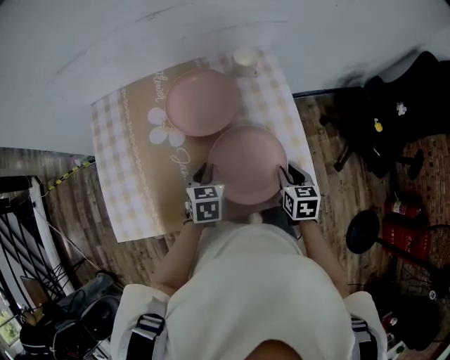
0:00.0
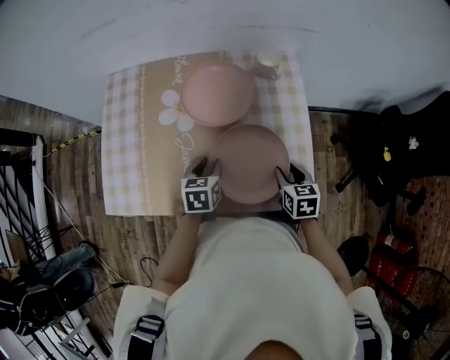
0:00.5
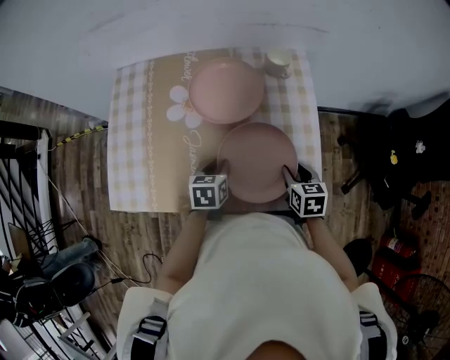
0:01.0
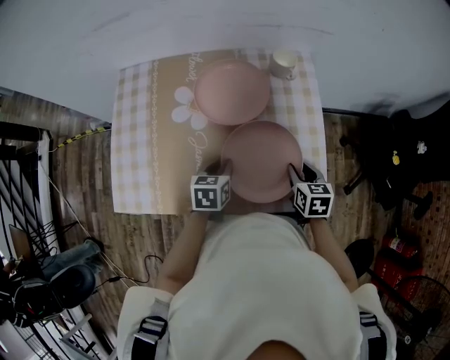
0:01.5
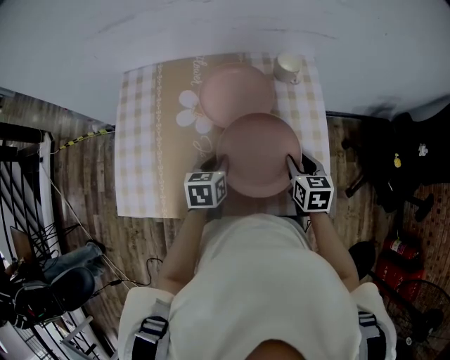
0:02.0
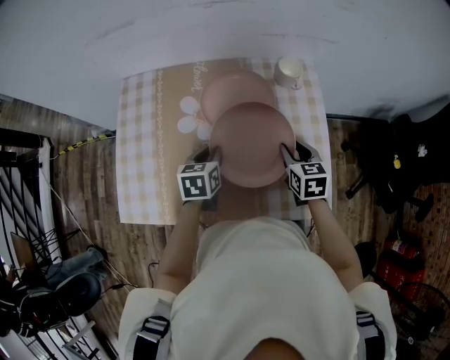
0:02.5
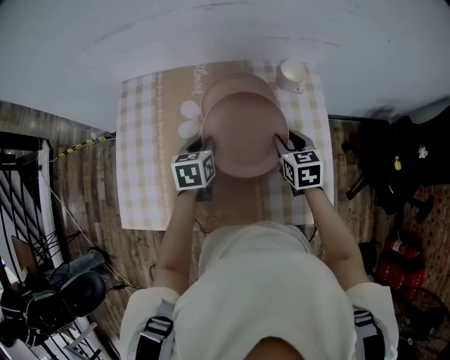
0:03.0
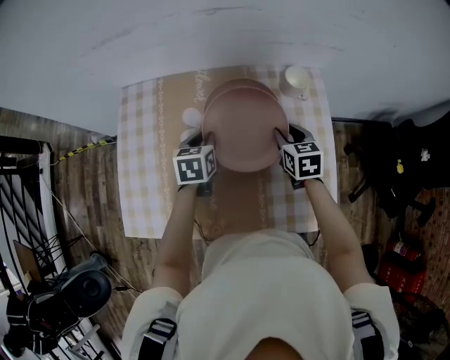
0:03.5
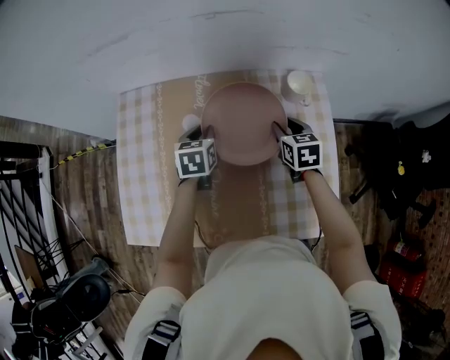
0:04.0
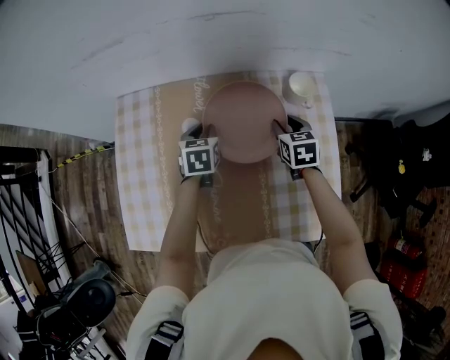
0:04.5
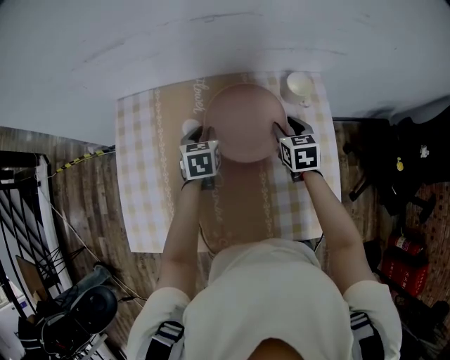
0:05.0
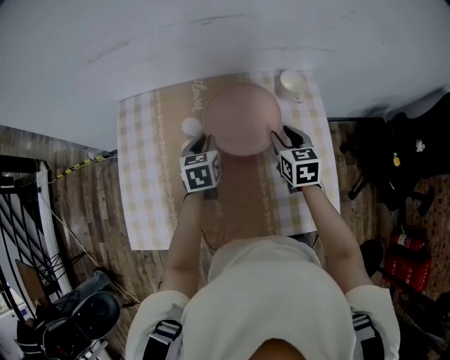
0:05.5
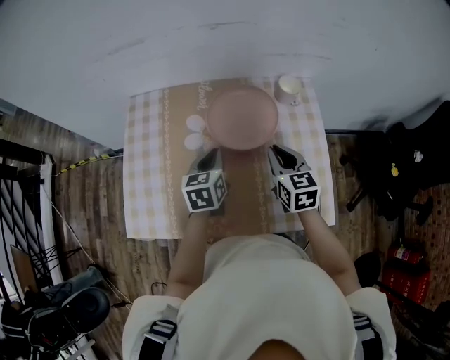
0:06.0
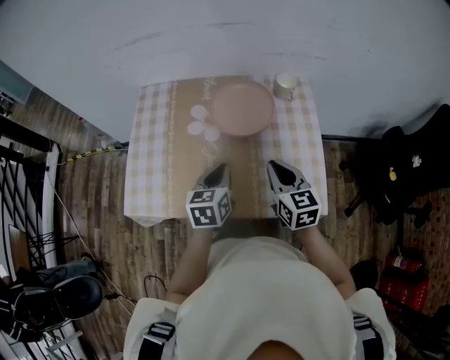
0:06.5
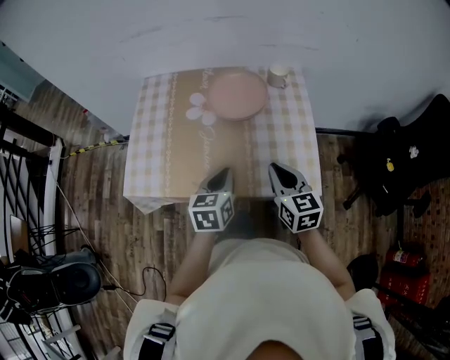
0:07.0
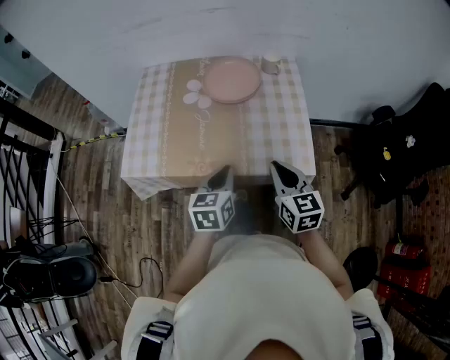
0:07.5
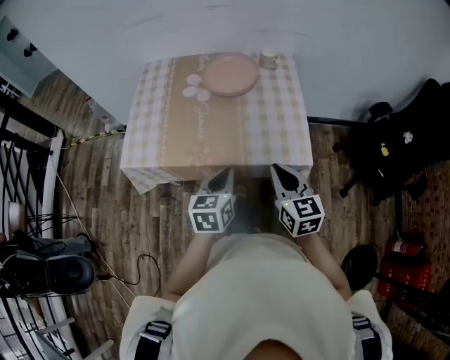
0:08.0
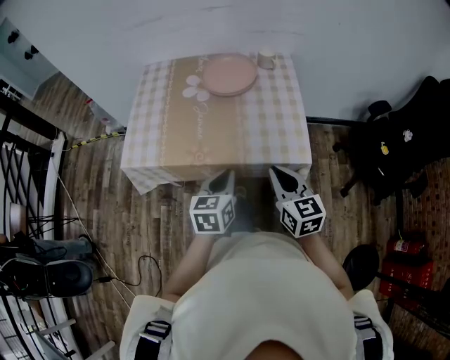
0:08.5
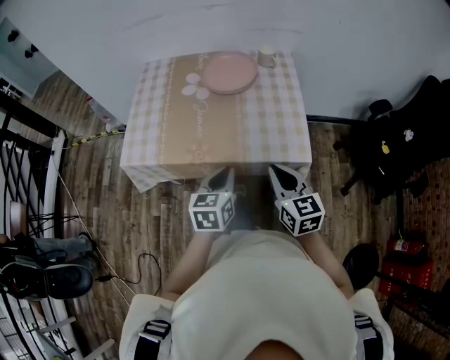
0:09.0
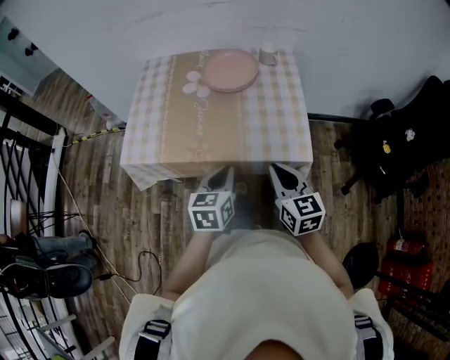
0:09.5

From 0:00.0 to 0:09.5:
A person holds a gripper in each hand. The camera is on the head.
From 0:00.0 to 0:02.0: The right gripper goes approximately 5 cm forward.
From 0:02.0 to 0:04.0: The grippers both shift forward by about 20 cm.
From 0:04.0 to 0:05.5: The right gripper changes place by about 5 cm.
From 0:05.5 to 0:07.5: The grippers both shift backward by approximately 35 cm. The right gripper changes its angle by about 20 degrees, and closes.
From 0:07.5 to 0:09.5: The two grippers go some 5 cm backward.

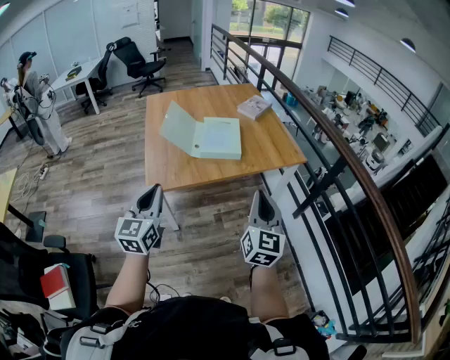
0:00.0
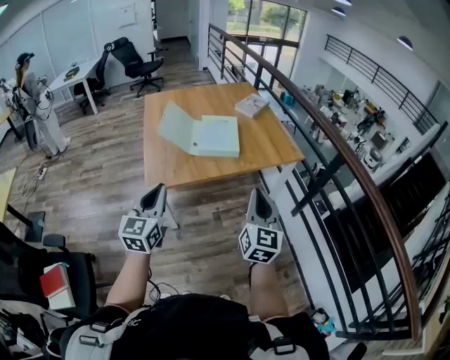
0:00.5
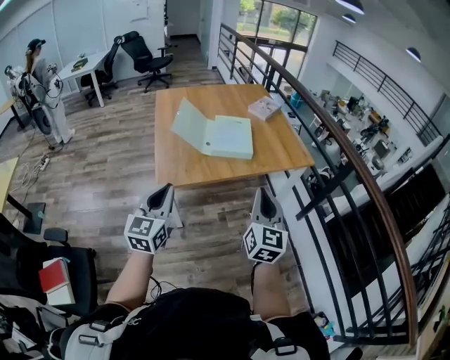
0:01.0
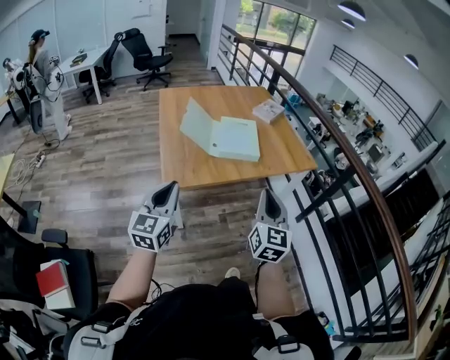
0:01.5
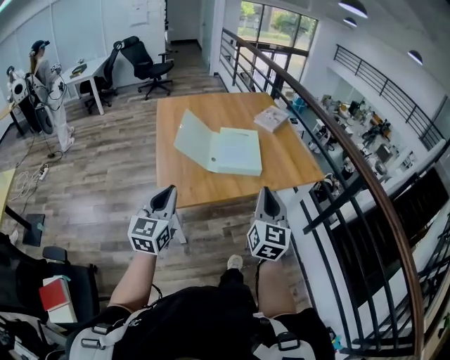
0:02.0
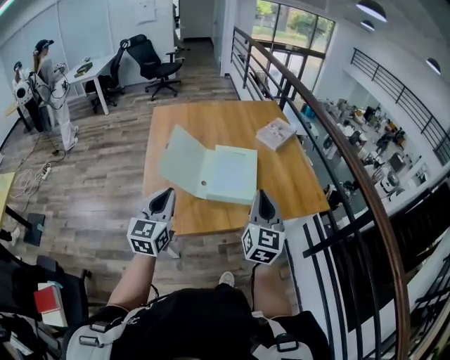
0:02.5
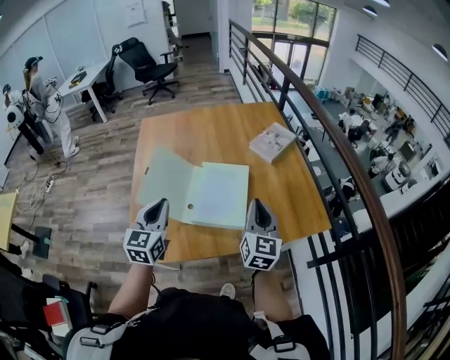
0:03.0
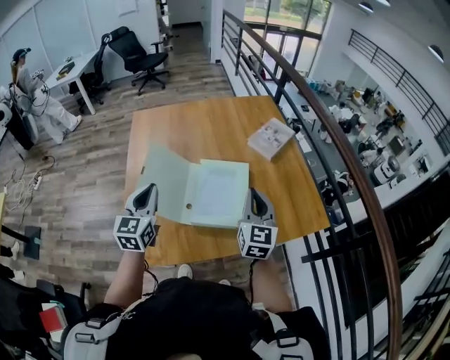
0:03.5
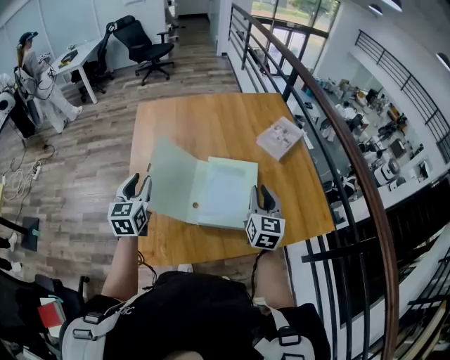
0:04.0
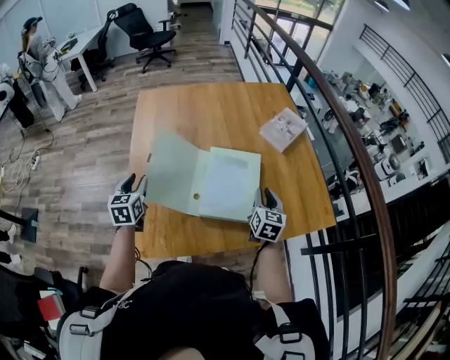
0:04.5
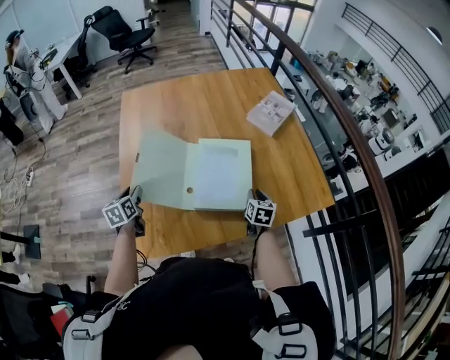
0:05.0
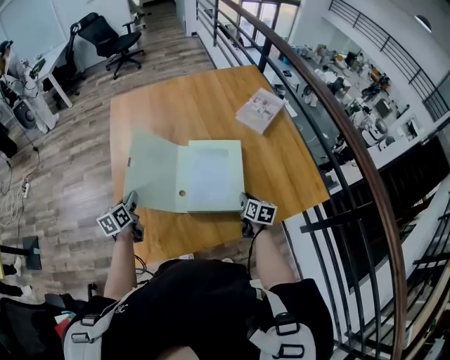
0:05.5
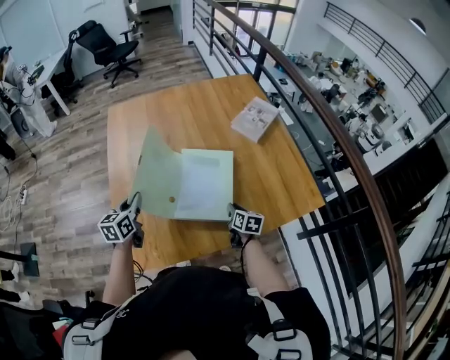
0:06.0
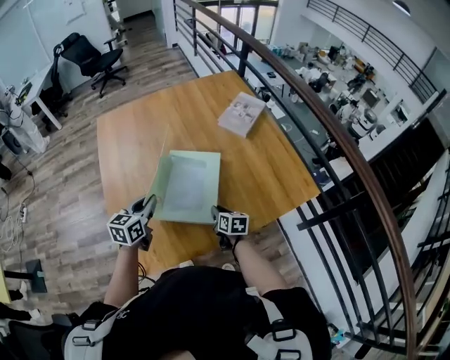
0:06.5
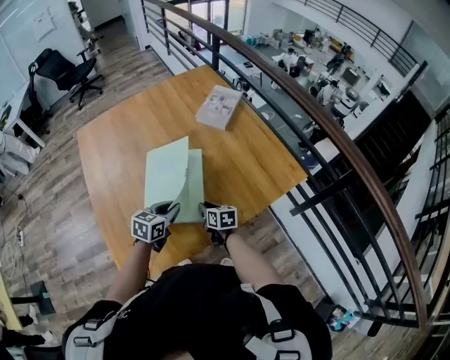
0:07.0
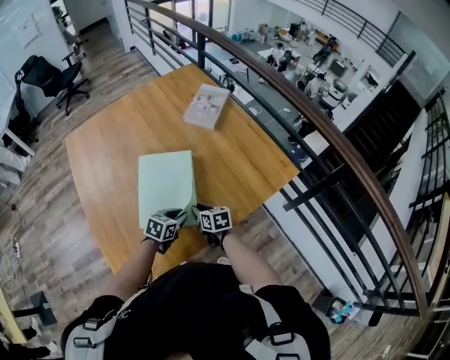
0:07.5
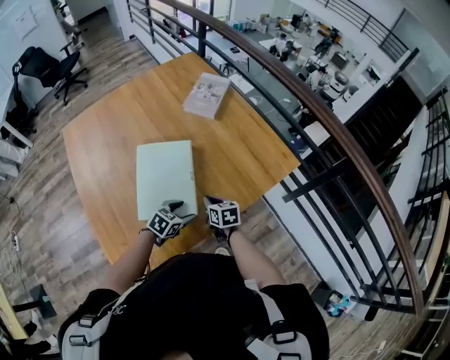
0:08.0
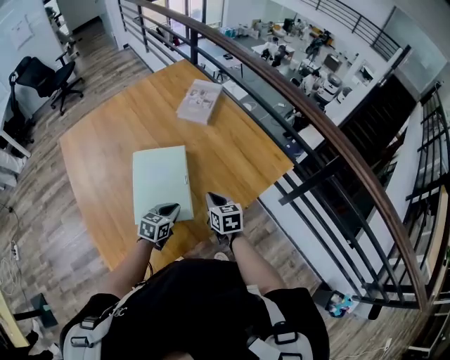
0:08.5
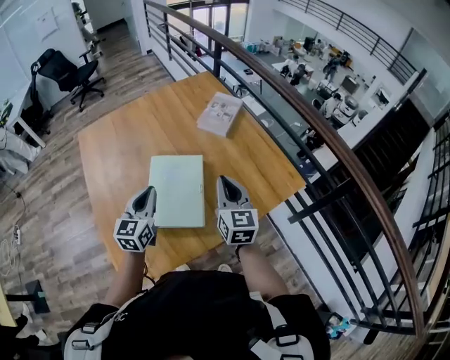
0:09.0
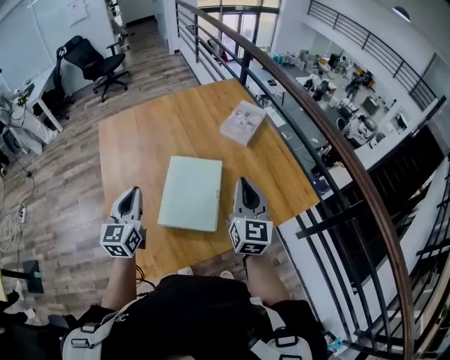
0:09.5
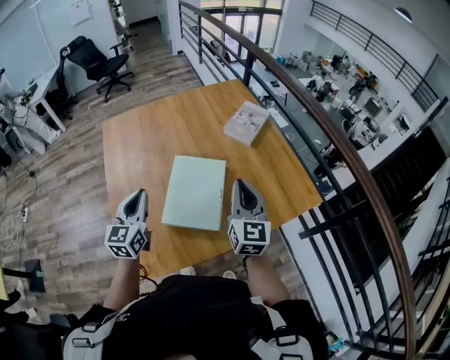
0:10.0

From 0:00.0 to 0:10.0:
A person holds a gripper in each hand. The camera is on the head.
From 0:00.0 to 0:02.0: Both grippers travel together forward and to the left, about 15 cm.
From 0:02.0 to 0:04.0: Both grippers travel together forward, roughly 40 cm. The left gripper turns by some 20 degrees, and opens.
From 0:04.0 to 0:06.0: The right gripper heads downward, covering roughly 25 cm, and rotates roughly 40 degrees, while the left gripper travels downward by about 10 cm, rotates roughly 20 degrees, and closes.
From 0:06.0 to 0:08.0: The left gripper ends up approximately 30 cm from where it was, turns by roughly 60 degrees, and opens up.
From 0:08.0 to 0:10.0: The left gripper travels upward and to the left by approximately 35 cm, tips its fingers upward by about 40 degrees, and closes up; the right gripper is displaced upward by some 30 cm, and angles its fingers upward, by approximately 40 degrees.

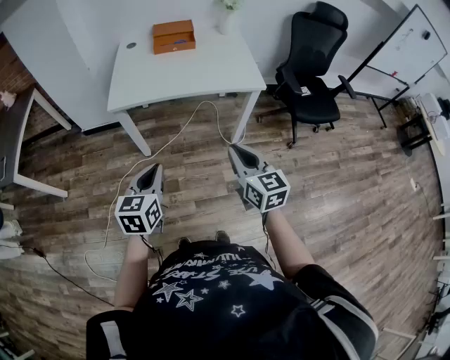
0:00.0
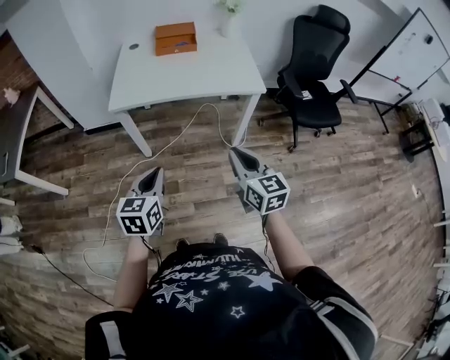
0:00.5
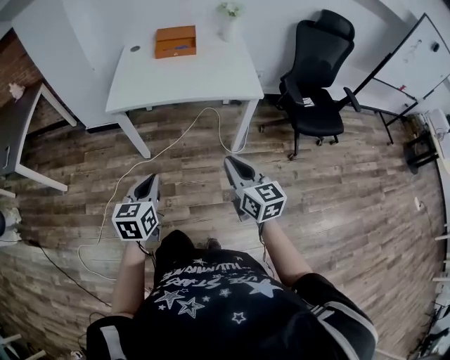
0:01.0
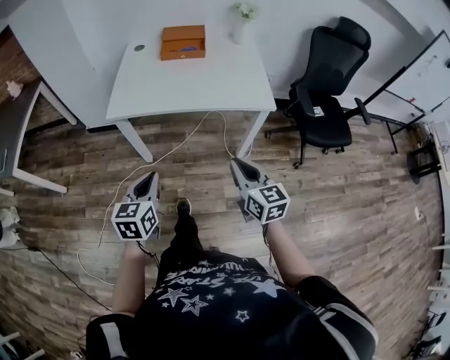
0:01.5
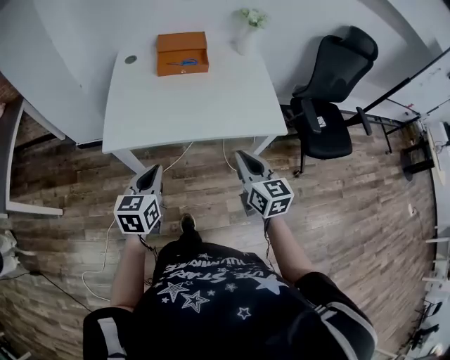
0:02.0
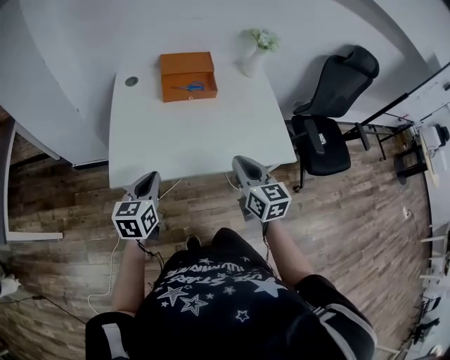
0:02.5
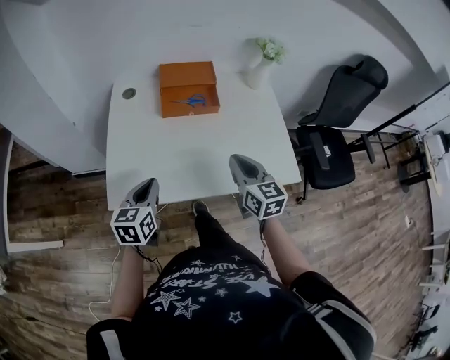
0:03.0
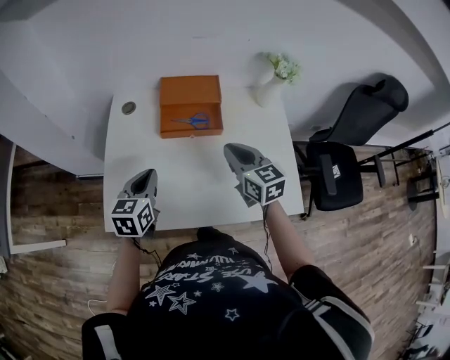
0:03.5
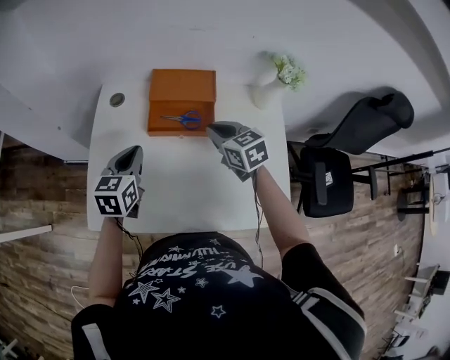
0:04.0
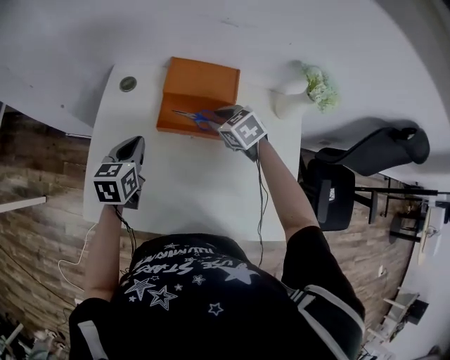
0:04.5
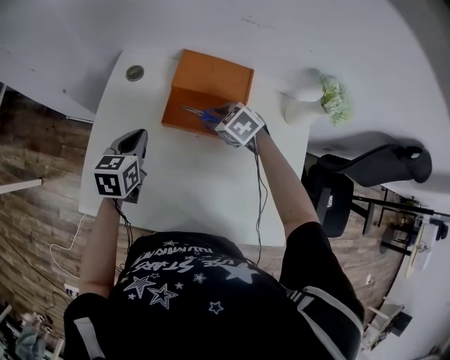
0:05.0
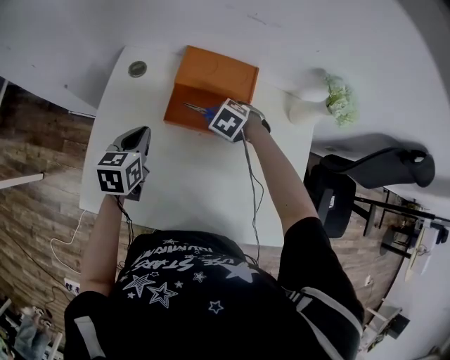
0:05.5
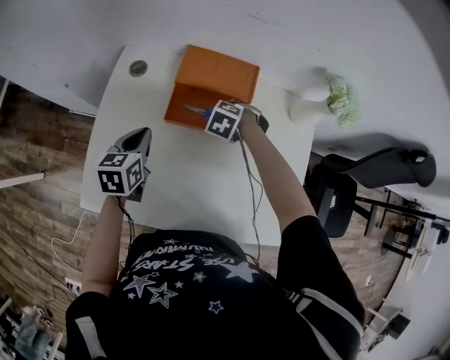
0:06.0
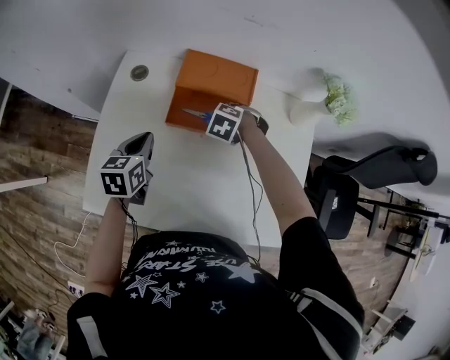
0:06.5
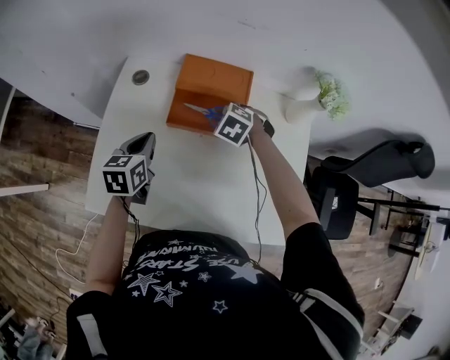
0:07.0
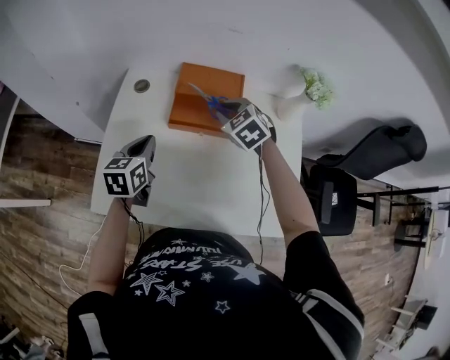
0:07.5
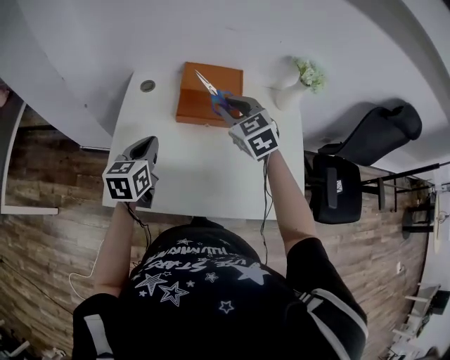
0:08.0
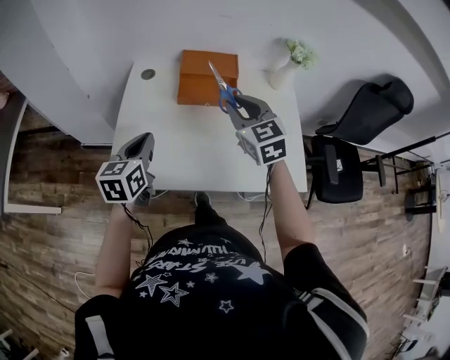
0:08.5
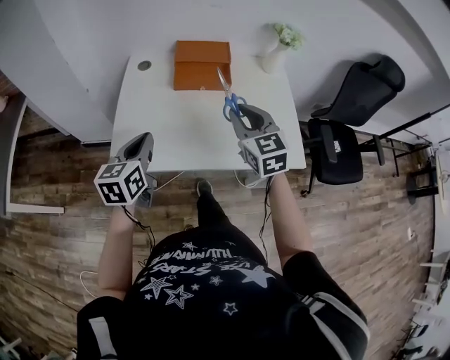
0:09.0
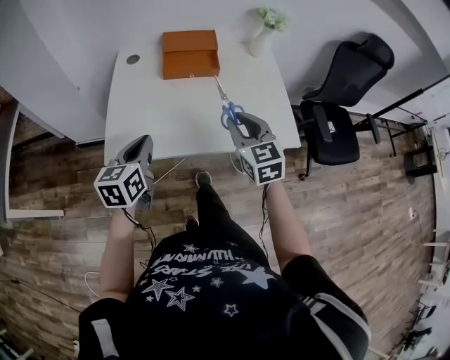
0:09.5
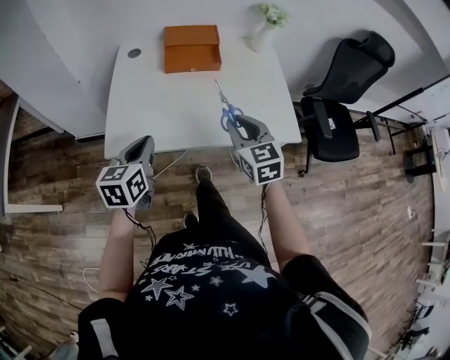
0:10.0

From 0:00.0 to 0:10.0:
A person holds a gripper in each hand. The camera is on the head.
From 0:00.0 to 0:02.0: Both grippers move forward, roughly 30 cm.
From 0:02.0 to 0:04.0: Both grippers are carried forward, some 50 cm. The right gripper turns by roughly 30 degrees.
From 0:04.0 to 0:06.0: The left gripper travels downward by approximately 10 cm. The right gripper is displaced downward by about 15 cm, and tilts its fingers some 50 degrees downward.
From 0:06.0 to 0:08.0: The right gripper travels upward by approximately 25 cm, and tips its fingers upward by about 50 degrees. The left gripper shifts by roughly 15 cm.
From 0:08.0 to 0:10.0: The two grippers go some 30 cm backward. The right gripper changes its angle by some 30 degrees.
